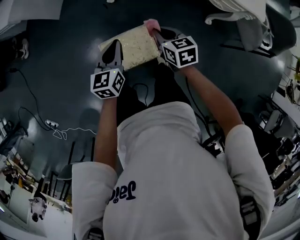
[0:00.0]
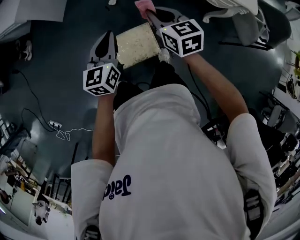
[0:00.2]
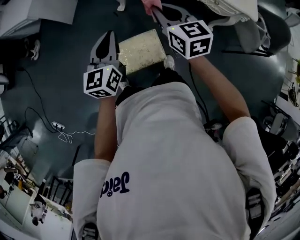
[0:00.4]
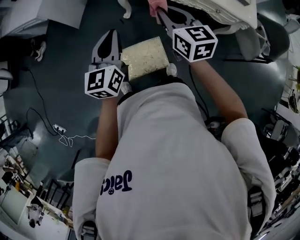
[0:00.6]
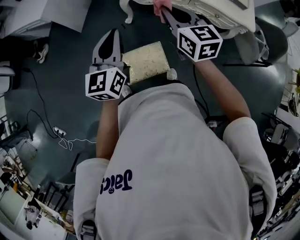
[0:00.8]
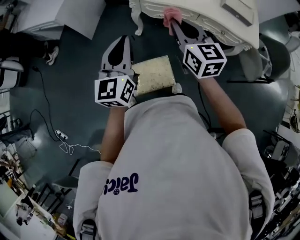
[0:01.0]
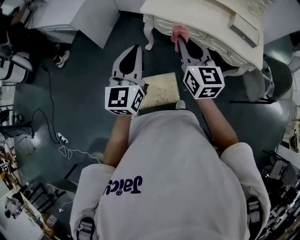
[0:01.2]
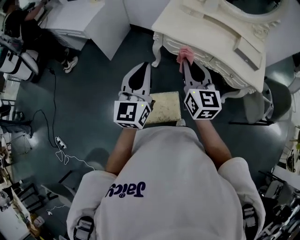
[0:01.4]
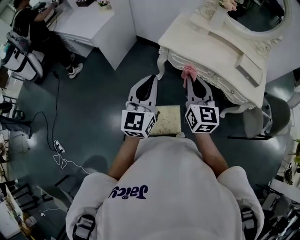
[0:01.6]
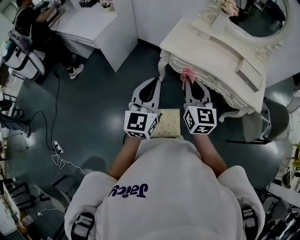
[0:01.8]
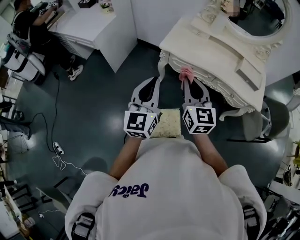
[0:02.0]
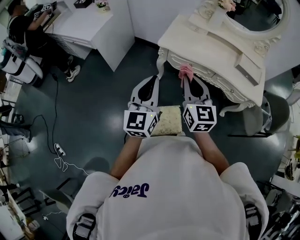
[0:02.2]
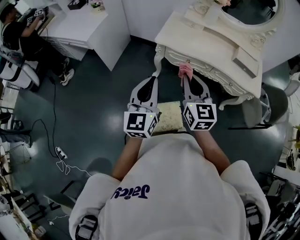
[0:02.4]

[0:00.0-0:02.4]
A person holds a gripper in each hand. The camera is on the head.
0.0 to 1.2 s: Both grippers move upward, roughly 35 cm. The right gripper tilts its fingers approximately 40 degrees upward; the left gripper turns by approximately 30 degrees.
1.2 to 2.4 s: The right gripper moves to the left, approximately 5 cm.

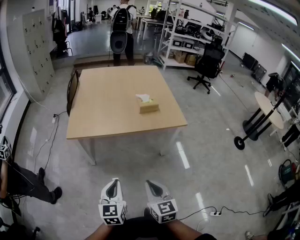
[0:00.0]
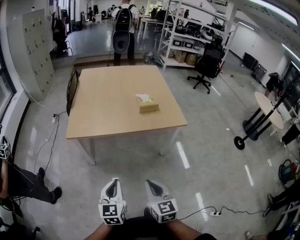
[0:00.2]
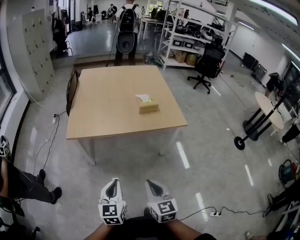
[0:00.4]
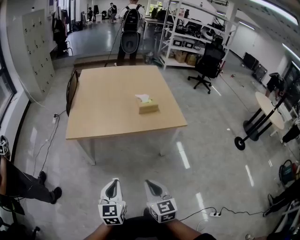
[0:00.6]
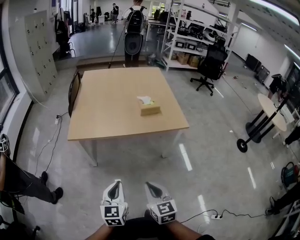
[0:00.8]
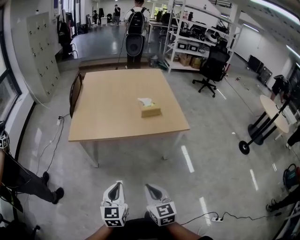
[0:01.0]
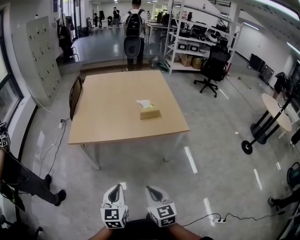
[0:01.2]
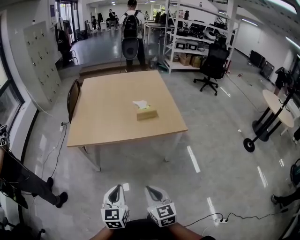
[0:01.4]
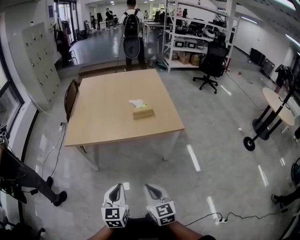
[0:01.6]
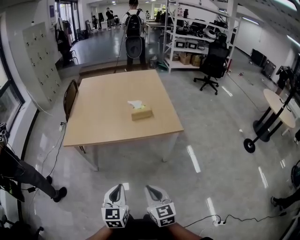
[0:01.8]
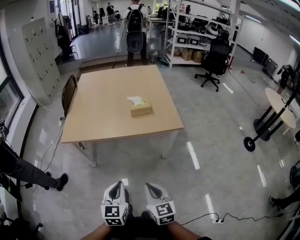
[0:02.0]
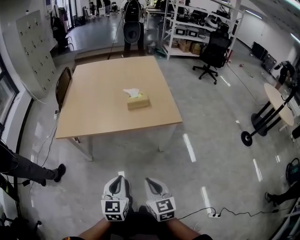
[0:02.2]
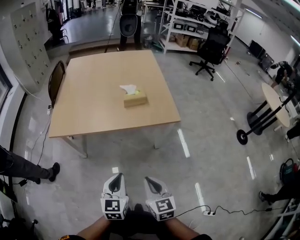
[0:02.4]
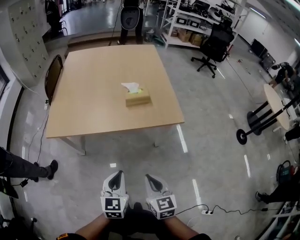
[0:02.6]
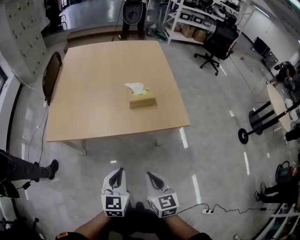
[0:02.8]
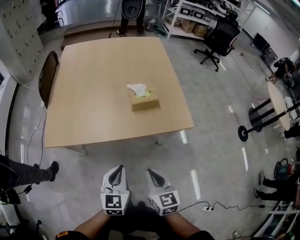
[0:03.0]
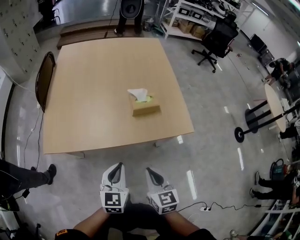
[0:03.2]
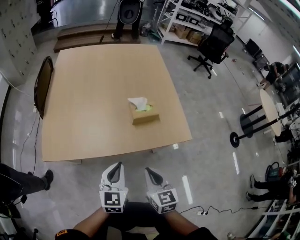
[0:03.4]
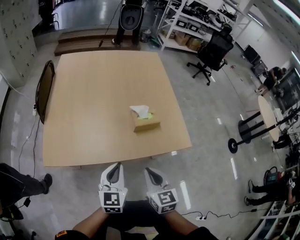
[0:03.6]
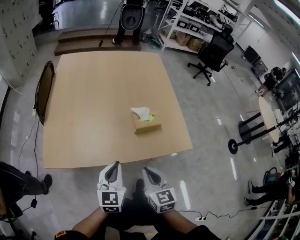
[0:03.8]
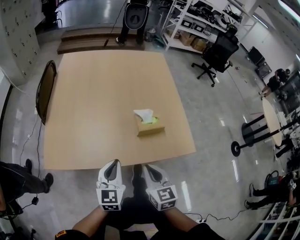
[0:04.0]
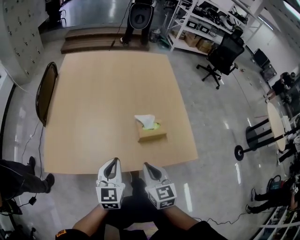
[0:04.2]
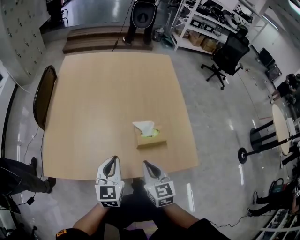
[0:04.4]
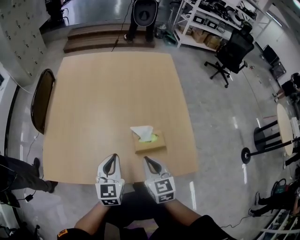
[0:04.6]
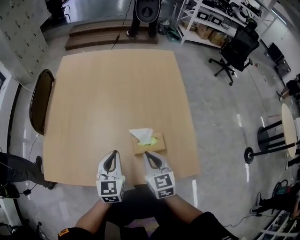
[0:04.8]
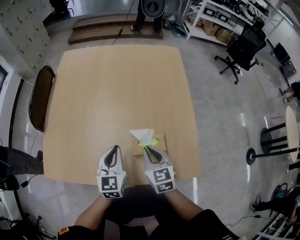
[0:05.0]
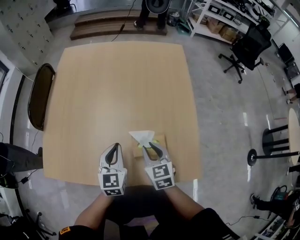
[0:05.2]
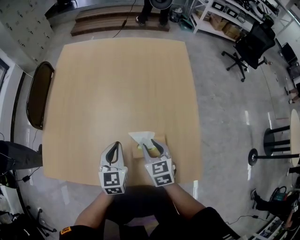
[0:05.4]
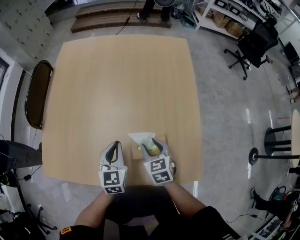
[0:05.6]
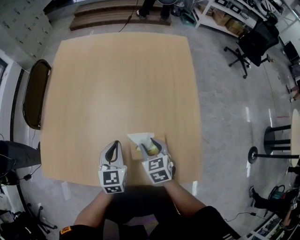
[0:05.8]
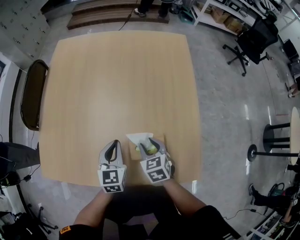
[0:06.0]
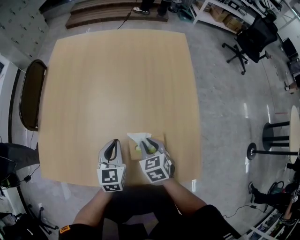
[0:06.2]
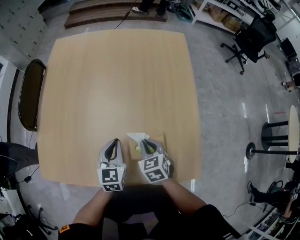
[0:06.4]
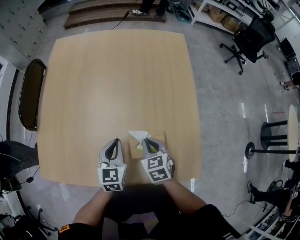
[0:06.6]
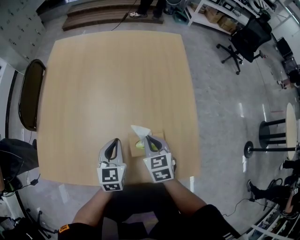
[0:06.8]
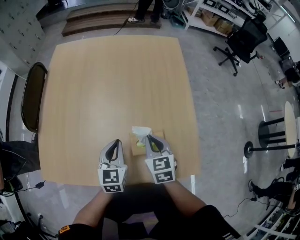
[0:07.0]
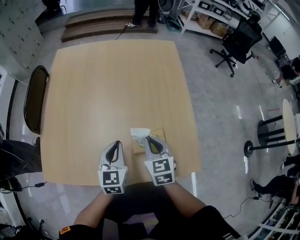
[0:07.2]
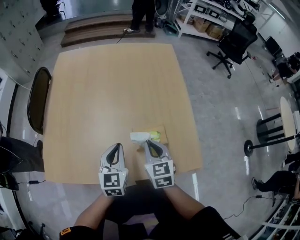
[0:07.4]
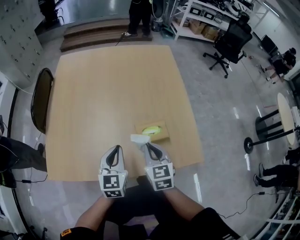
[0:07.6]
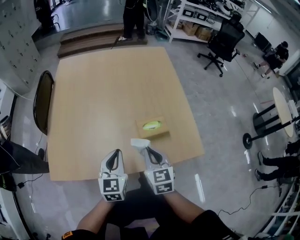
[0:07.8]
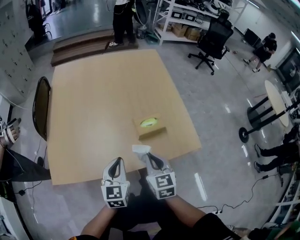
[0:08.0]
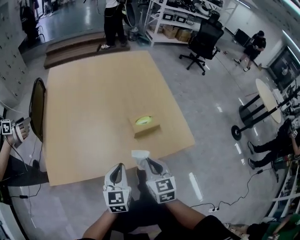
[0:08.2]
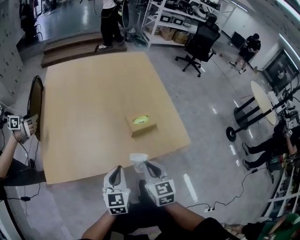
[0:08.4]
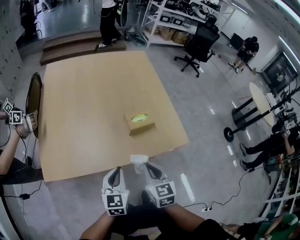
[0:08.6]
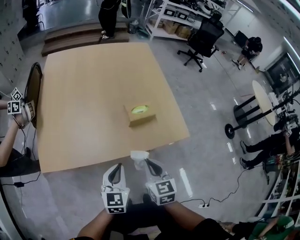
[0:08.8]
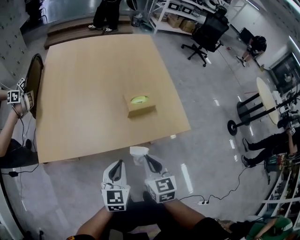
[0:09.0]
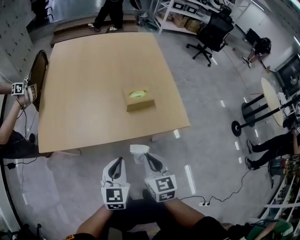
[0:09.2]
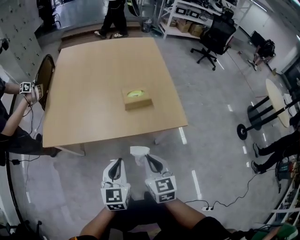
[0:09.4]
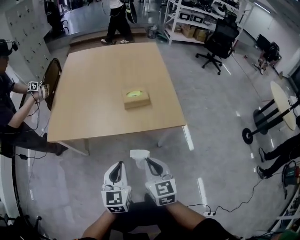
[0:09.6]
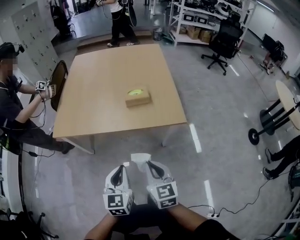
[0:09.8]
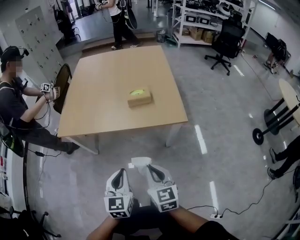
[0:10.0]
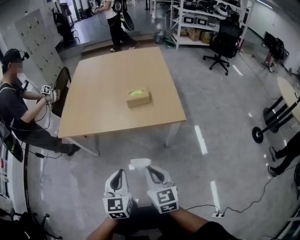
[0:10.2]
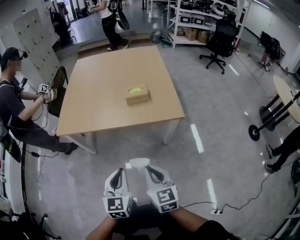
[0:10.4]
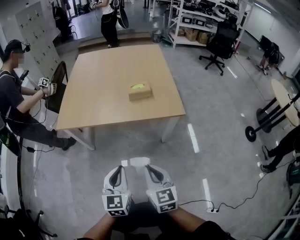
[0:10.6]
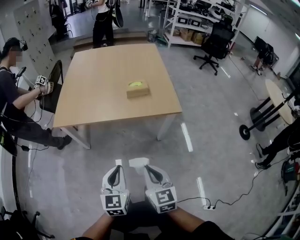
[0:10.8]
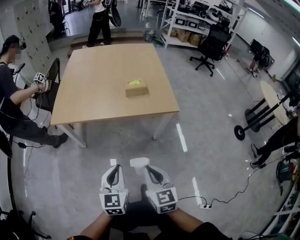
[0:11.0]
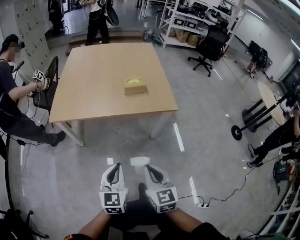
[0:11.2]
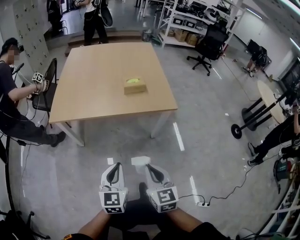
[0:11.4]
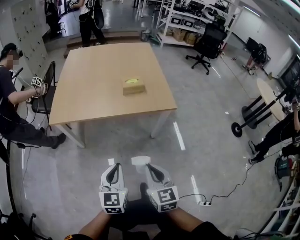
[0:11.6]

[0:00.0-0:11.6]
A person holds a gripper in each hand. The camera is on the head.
0.0 to 1.4 s: The left gripper goes approximately 5 cm to the right.
1.4 to 2.8 s: Both grippers travel together forward and to the right, approximately 15 cm.
2.8 to 4.4 s: Both grippers travel together forward, about 30 cm.
4.4 to 5.8 s: The right gripper goes approximately 15 cm forward and downward, swivels some 20 degrees, and opens its fingers, while the left gripper goes some 15 cm forward and to the right.
5.8 to 7.2 s: The right gripper travels upward by about 10 cm, and closes up.
7.2 to 8.8 s: Both grippers travel together backward, roughly 25 cm.
8.8 to 10.2 s: The two grippers go roughly 20 cm backward.
10.2 to 11.6 s: The left gripper moves roughly 5 cm. The right gripper moves backward, about 5 cm.

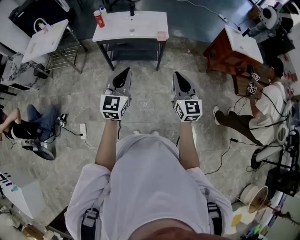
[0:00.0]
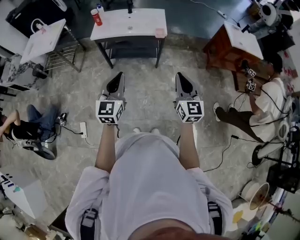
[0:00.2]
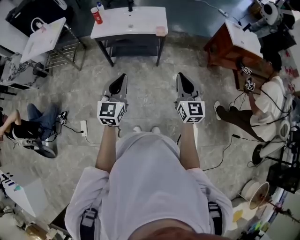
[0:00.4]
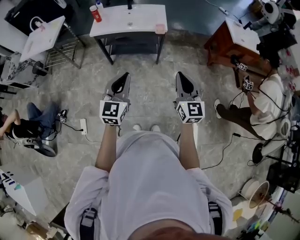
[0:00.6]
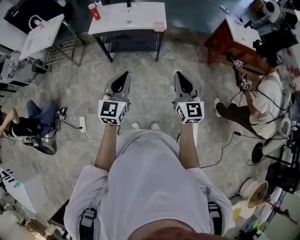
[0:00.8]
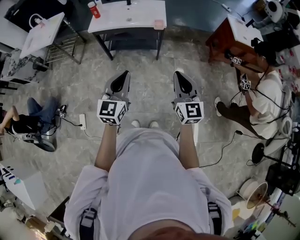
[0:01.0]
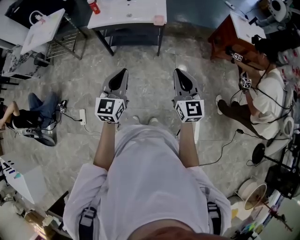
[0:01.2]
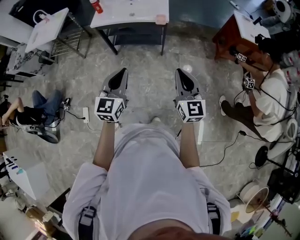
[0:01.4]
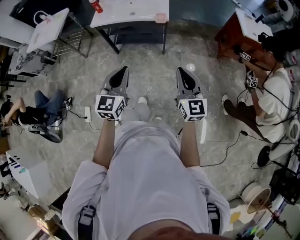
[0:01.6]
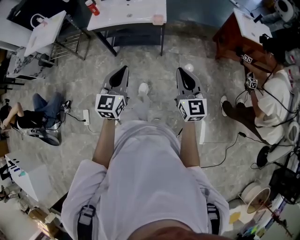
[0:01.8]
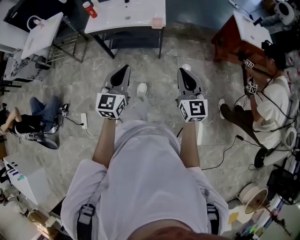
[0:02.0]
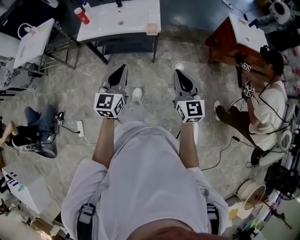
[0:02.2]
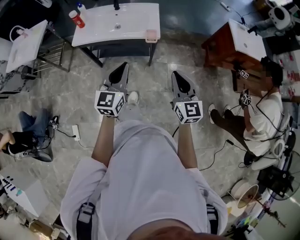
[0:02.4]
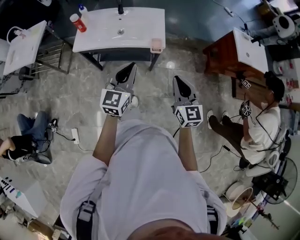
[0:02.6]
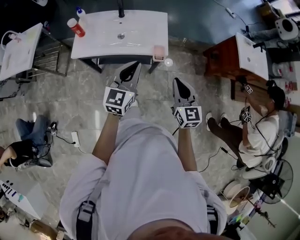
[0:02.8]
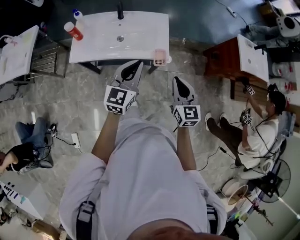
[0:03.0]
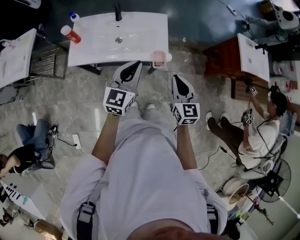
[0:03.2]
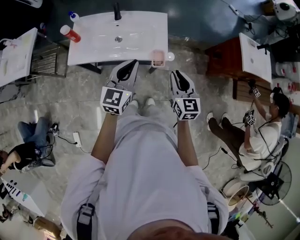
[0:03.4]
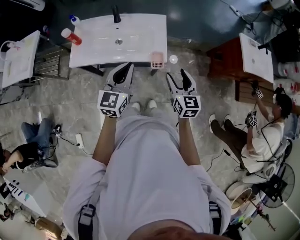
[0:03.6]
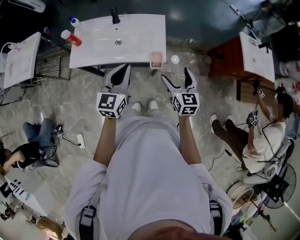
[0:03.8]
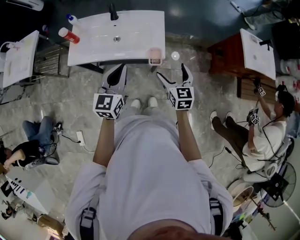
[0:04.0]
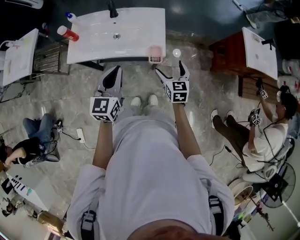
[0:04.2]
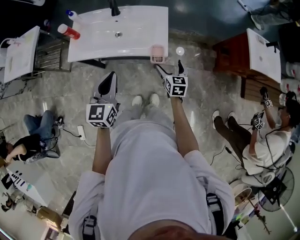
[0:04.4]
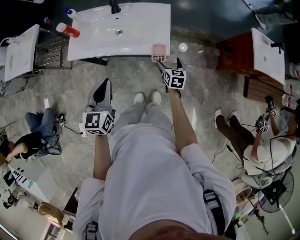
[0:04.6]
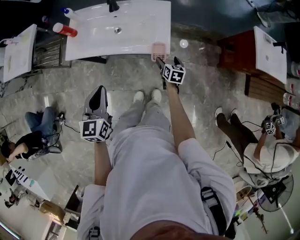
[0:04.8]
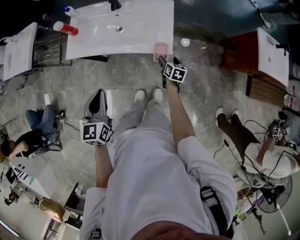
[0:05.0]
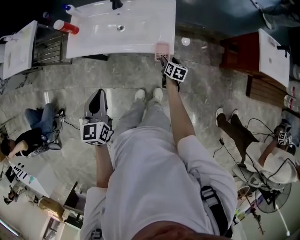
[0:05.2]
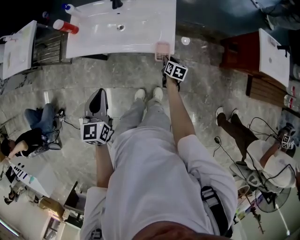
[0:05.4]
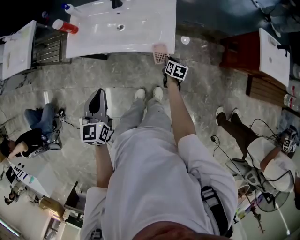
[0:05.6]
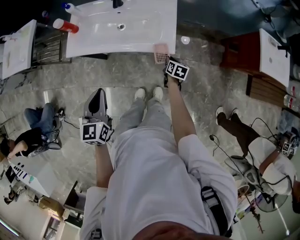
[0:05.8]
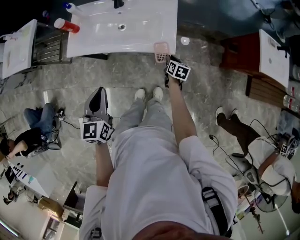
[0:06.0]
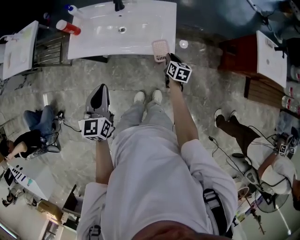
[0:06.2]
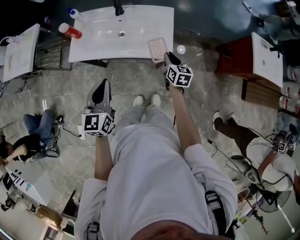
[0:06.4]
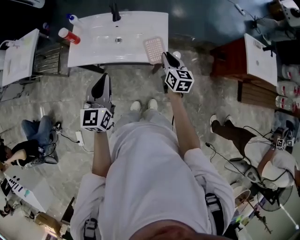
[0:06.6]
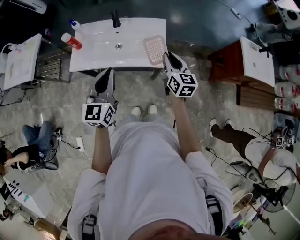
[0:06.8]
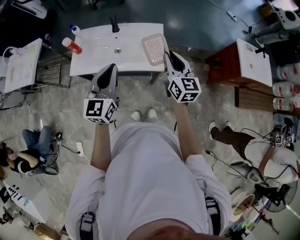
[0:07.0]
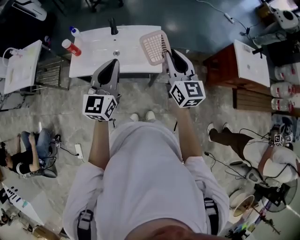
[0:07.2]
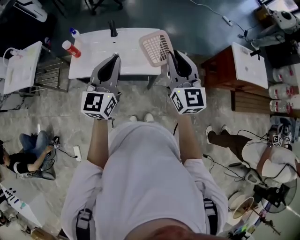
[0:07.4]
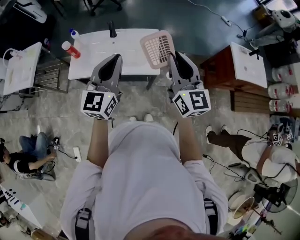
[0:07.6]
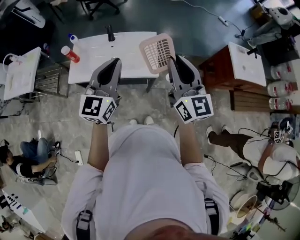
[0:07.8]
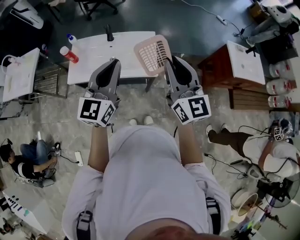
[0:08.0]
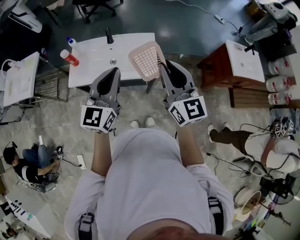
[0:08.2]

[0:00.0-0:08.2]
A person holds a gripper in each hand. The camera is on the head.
0.0 to 1.6 s: Both grippers move to the right, about 10 cm.
1.6 to 3.2 s: The two grippers travel together, forward, about 50 cm.
3.2 to 5.0 s: The left gripper heads to the left, backward and downward, covering about 15 cm, and swivels about 30 degrees; the right gripper heads downward and forward, covering about 30 cm, rotates approximately 40 degrees, and opens its fingers.
5.0 to 6.6 s: The right gripper shifts some 20 cm upward, turns by roughly 20 degrees, and closes, while the left gripper goes about 10 cm upward and forward.
6.6 to 8.2 s: The left gripper travels upward and to the right by approximately 15 cm. The right gripper goes roughly 30 cm upward, and changes its angle by about 30 degrees.

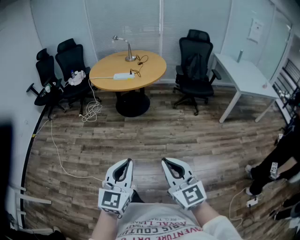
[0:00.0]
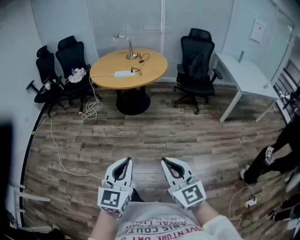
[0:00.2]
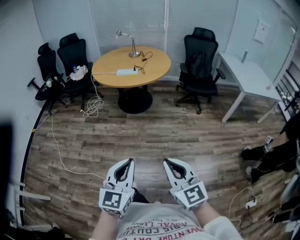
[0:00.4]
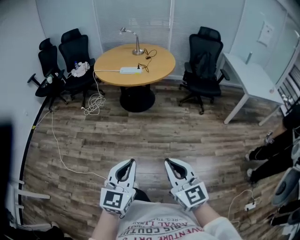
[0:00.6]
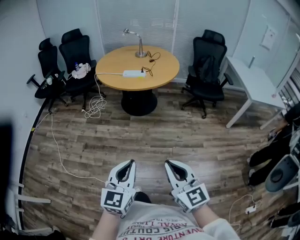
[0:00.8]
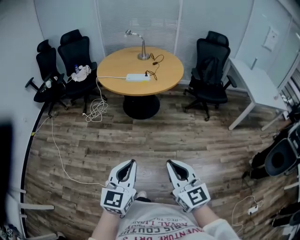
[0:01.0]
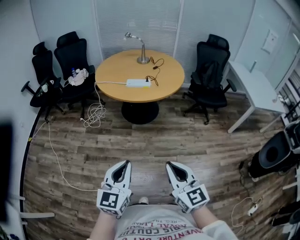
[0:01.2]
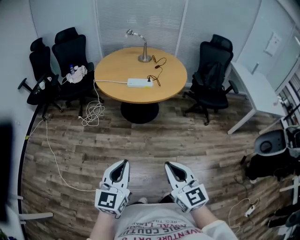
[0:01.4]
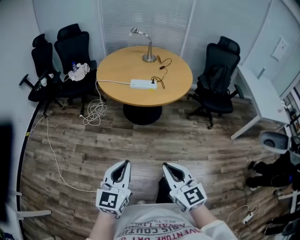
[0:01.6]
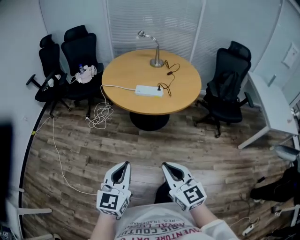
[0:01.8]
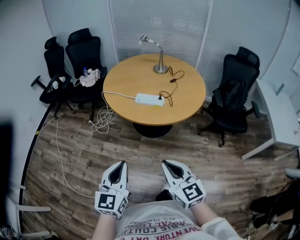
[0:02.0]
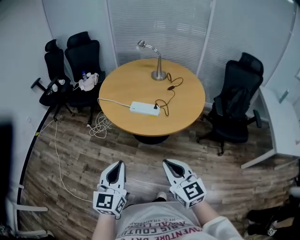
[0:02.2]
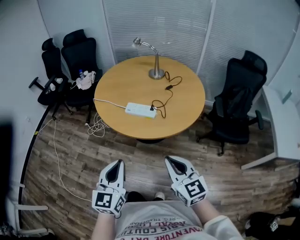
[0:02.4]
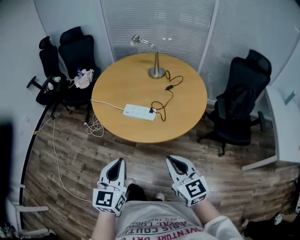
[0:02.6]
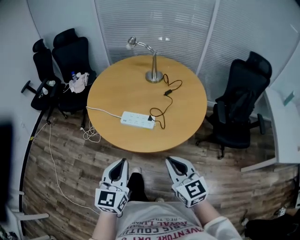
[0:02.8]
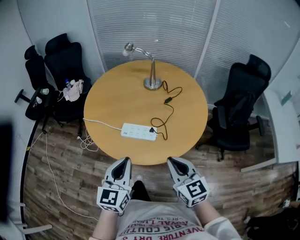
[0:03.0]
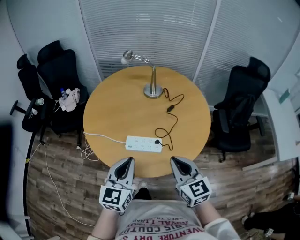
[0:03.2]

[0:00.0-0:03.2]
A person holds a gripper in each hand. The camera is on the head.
0.0 to 1.6 s: The grippers both shift forward and to the left by about 35 cm.
1.6 to 3.2 s: The two grippers travel together, forward, about 50 cm.
